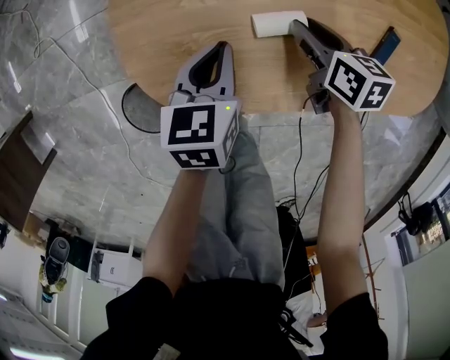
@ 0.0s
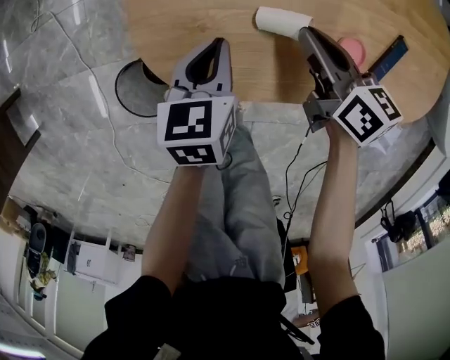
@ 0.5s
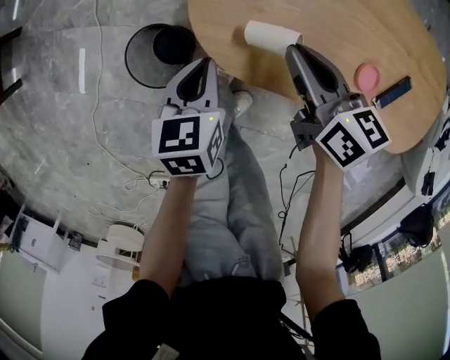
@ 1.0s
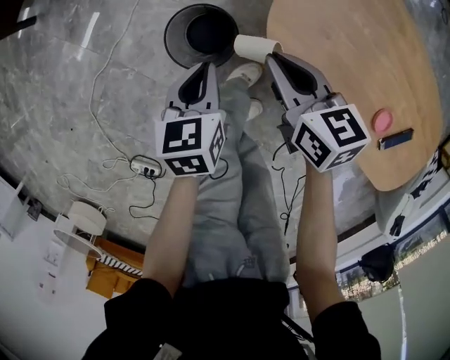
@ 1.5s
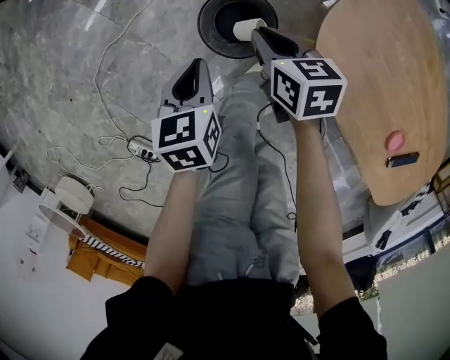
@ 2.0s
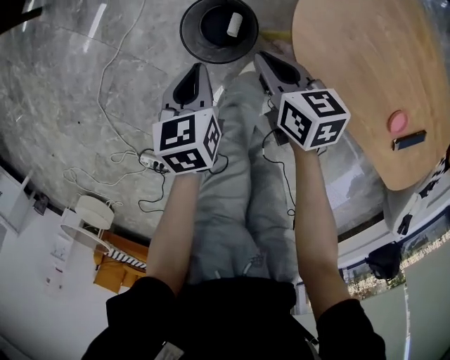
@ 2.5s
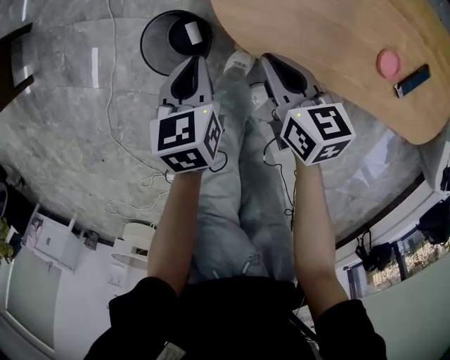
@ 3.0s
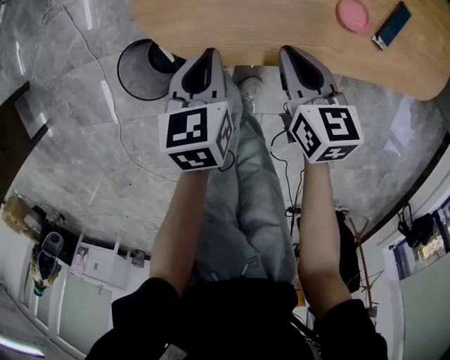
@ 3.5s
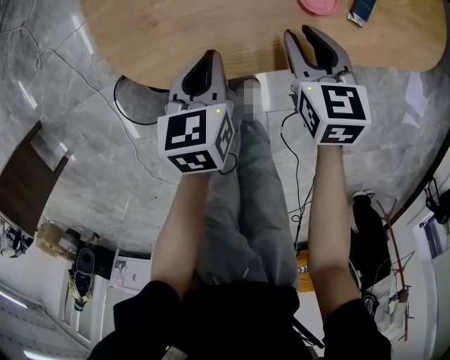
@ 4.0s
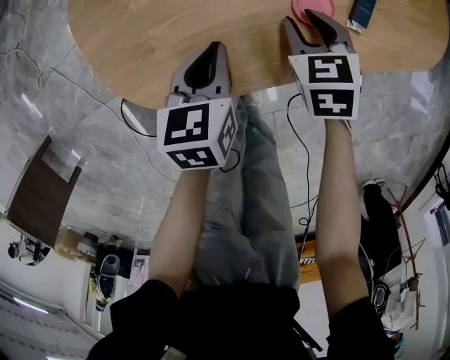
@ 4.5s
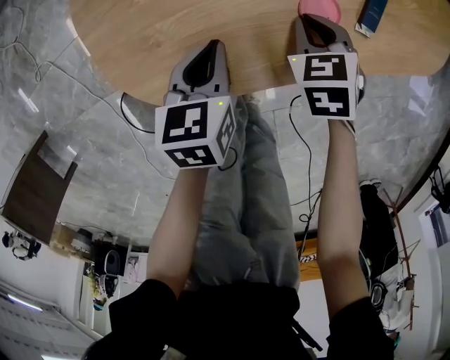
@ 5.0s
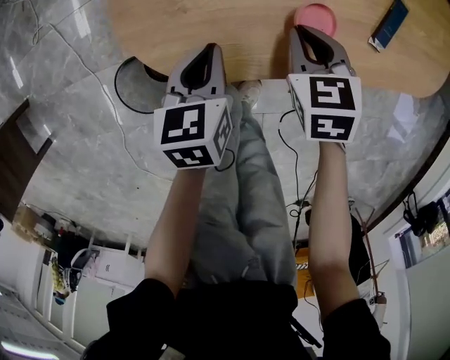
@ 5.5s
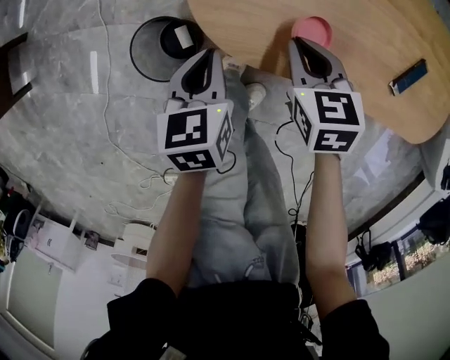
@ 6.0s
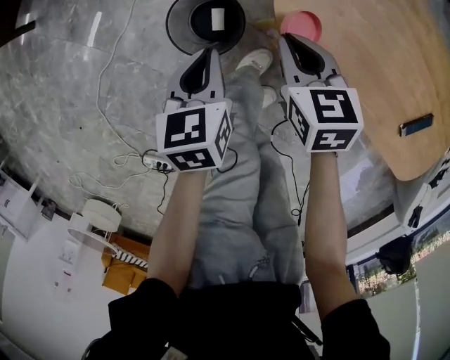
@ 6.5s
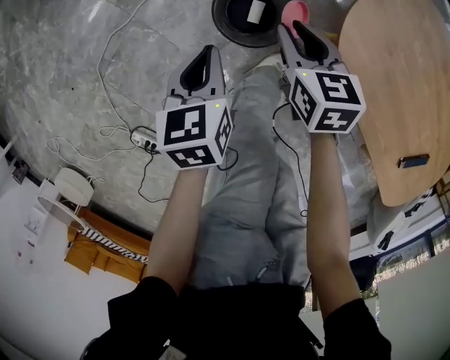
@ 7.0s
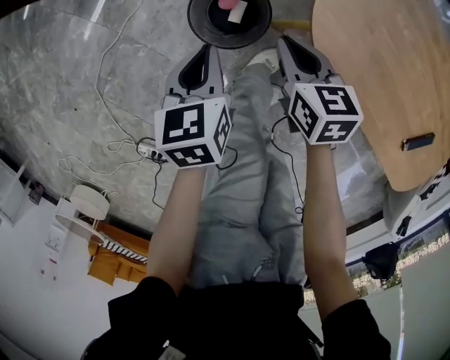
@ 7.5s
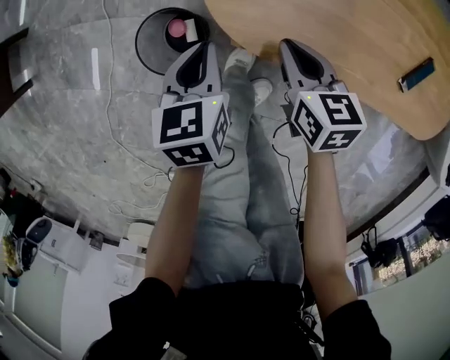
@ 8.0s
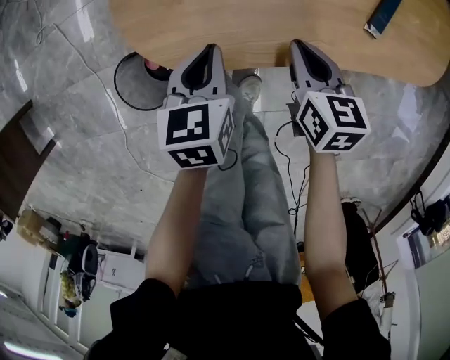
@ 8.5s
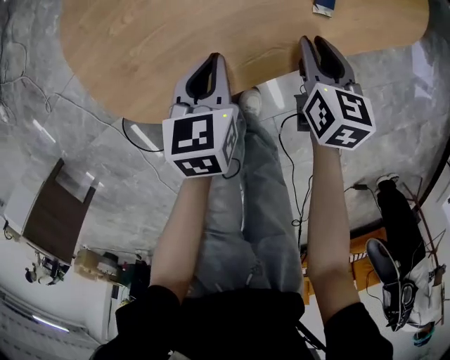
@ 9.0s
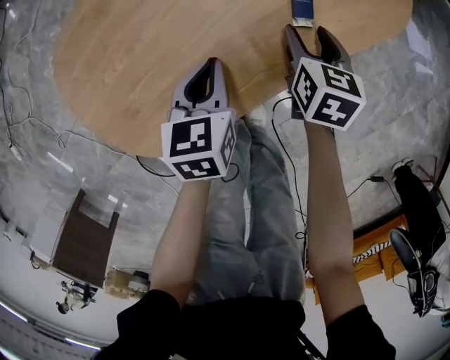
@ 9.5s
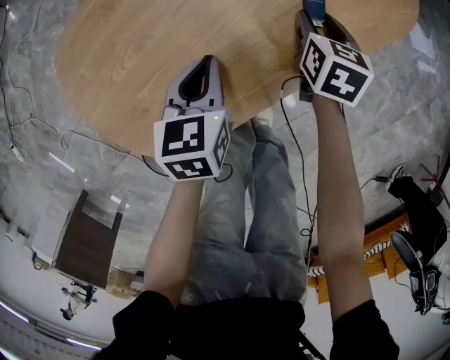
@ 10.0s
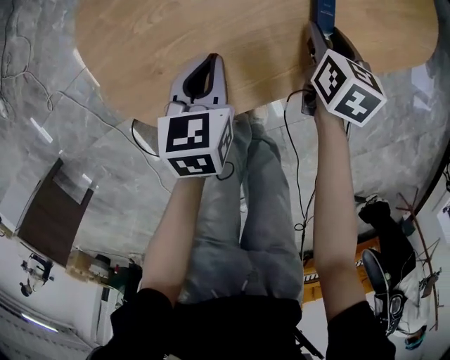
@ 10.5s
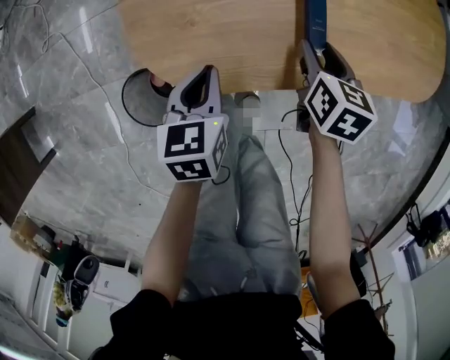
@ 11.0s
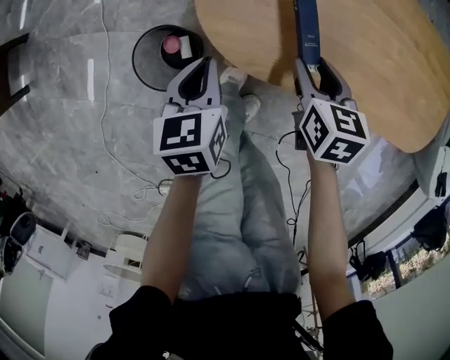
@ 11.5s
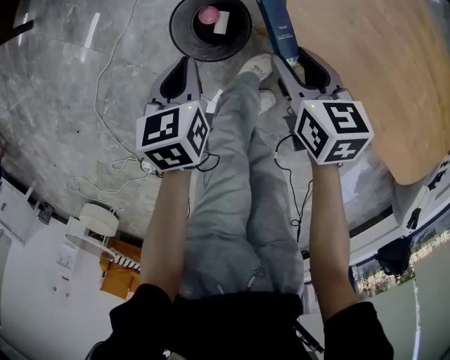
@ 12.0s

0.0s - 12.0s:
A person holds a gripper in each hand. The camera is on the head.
0.0s - 2.0s: The pair of grippers is taken some 50 cm. The right gripper turns by roughly 50 degrees, and closes up; the left gripper turns by approximately 60 degrees.
2.0s - 4.0s: The two grippers travel together, about 40 cm. The right gripper turns by roughly 60 degrees. The left gripper turns by about 60 degrees.
4.0s - 6.0s: The right gripper moves roughly 20 cm, turns by roughly 30 degrees, and closes up, while the left gripper ends up about 15 cm from where it was, and swivels about 30 degrees.
8.0s - 10.0s: The left gripper moves approximately 35 cm, and changes its angle by about 50 degrees. The right gripper changes place by approximately 40 cm, turns by about 60 degrees, and opens up.
10.0s - 12.0s: Both grippers are carried approximately 50 cm. The right gripper rotates some 80 degrees. Meanwhile the left gripper swivels roughly 70 degrees.

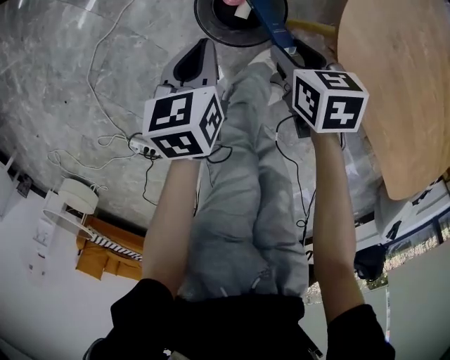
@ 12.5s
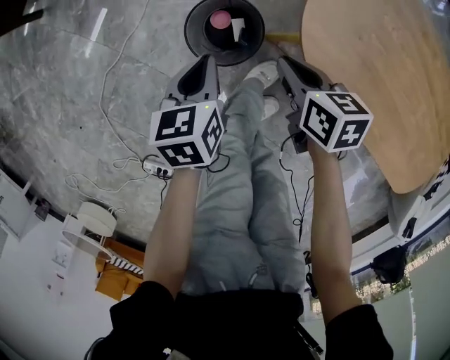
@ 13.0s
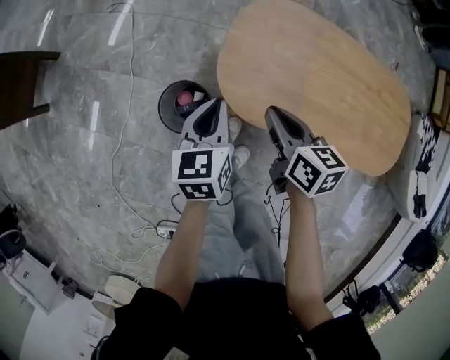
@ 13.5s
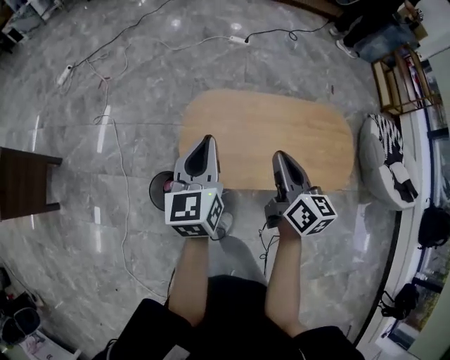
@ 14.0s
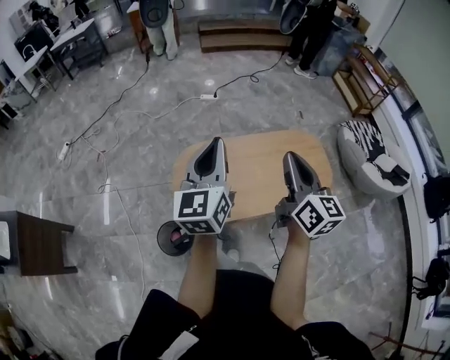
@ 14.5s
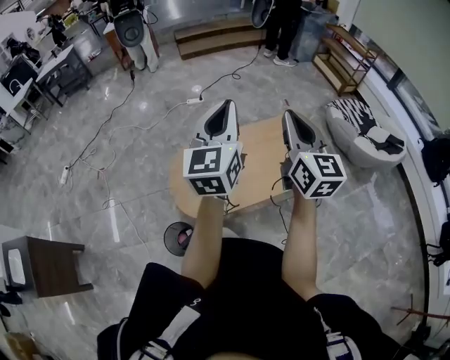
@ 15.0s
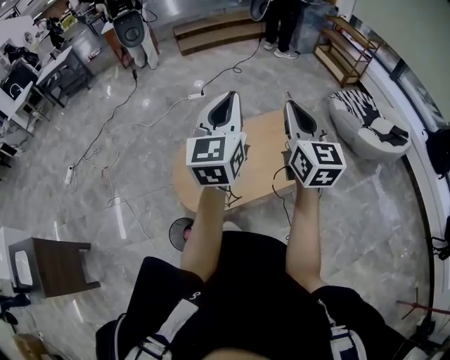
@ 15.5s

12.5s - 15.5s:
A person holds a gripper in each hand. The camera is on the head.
12.5s - 14.0s: Both grippers travel together upward, about 50 cm. The right gripper points its fingers some 40 degrees further upward, and closes up; the left gripper angles its fingers upward, by approximately 40 degrees.
14.0s - 15.5s: Both grippers travel together upward, some 25 cm. The left gripper changes its angle by some 30 degrees; the right gripper rotates roughly 40 degrees.

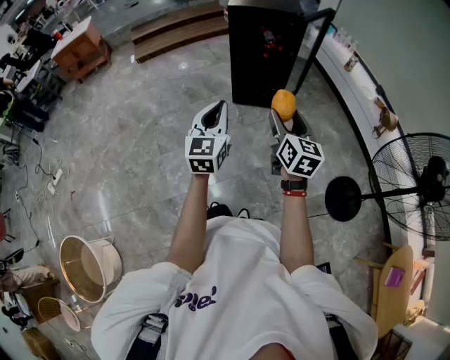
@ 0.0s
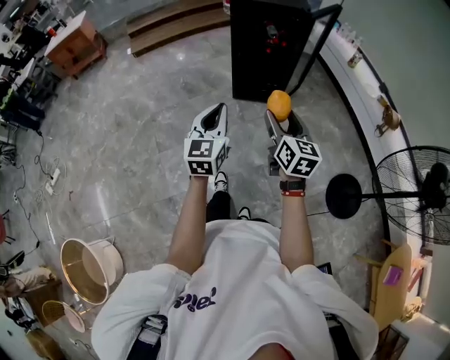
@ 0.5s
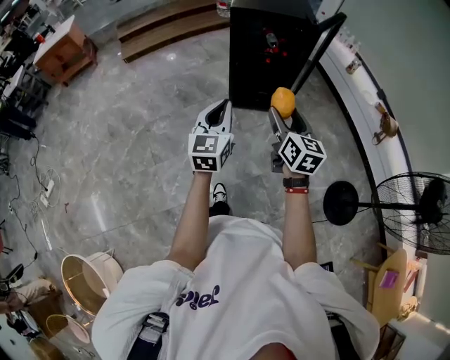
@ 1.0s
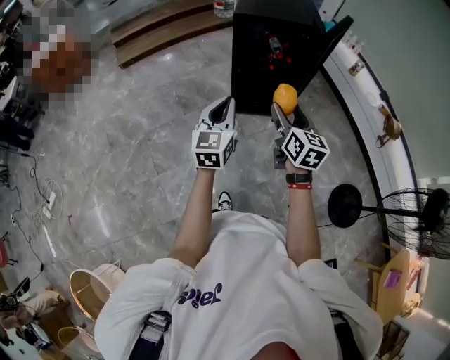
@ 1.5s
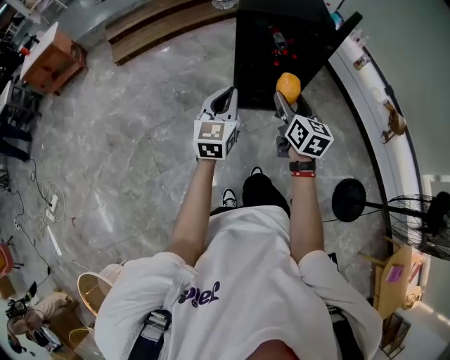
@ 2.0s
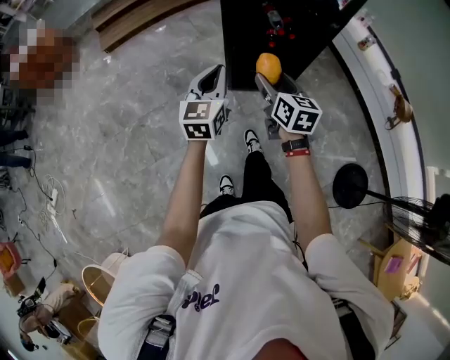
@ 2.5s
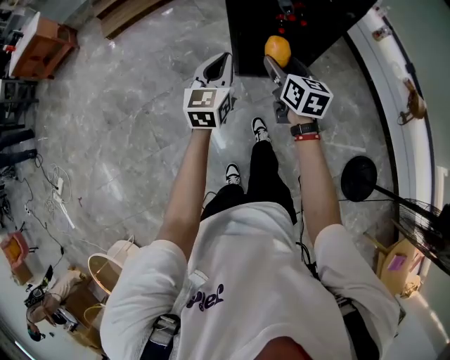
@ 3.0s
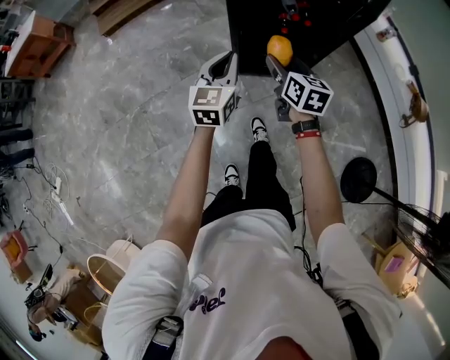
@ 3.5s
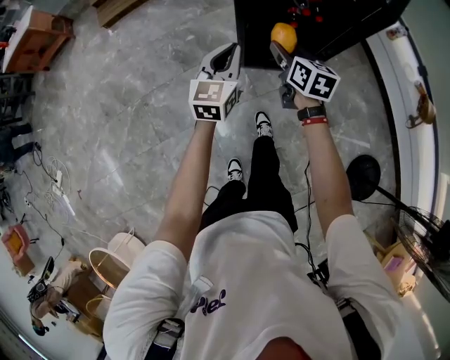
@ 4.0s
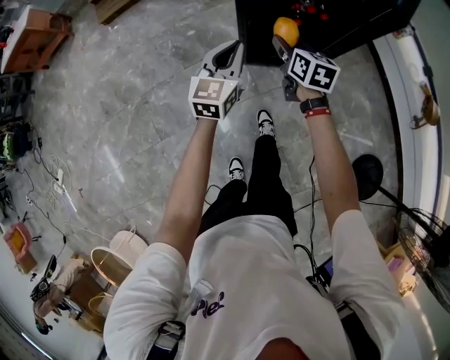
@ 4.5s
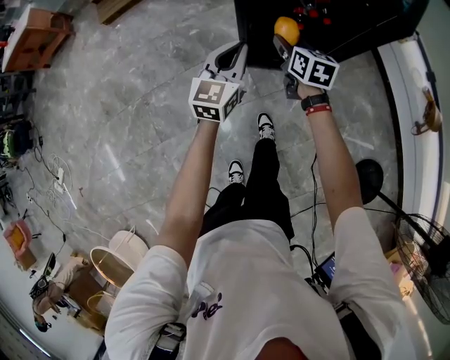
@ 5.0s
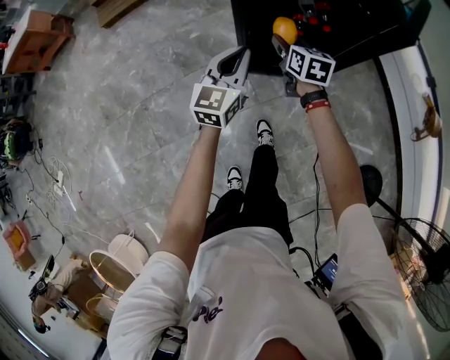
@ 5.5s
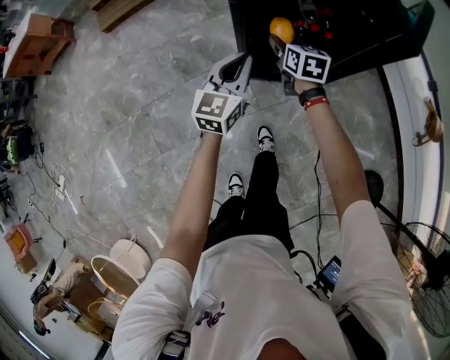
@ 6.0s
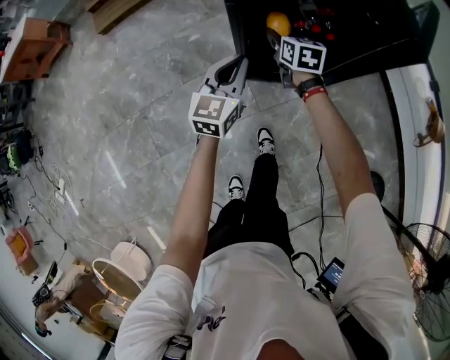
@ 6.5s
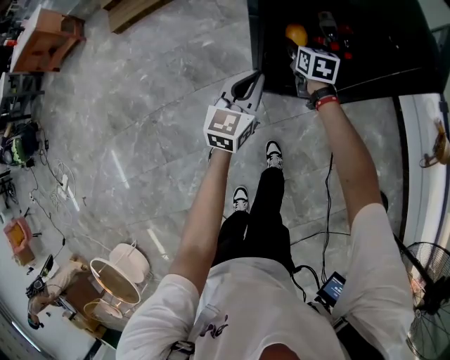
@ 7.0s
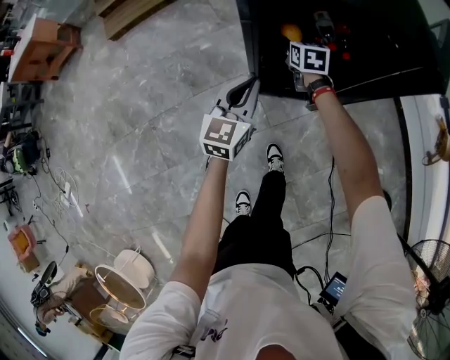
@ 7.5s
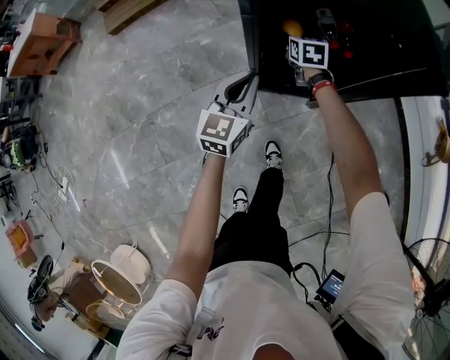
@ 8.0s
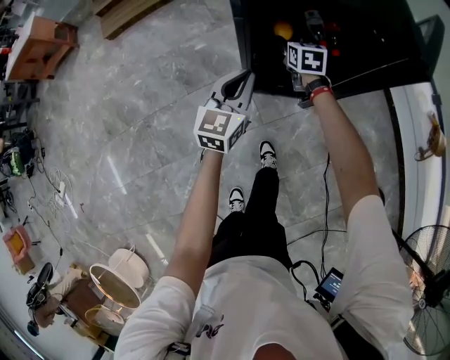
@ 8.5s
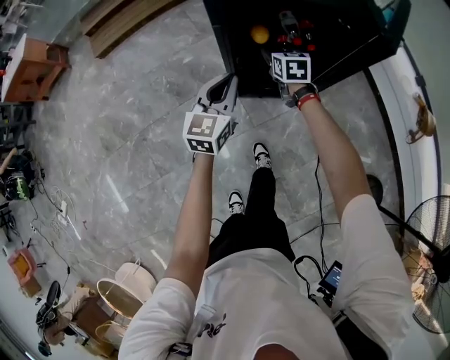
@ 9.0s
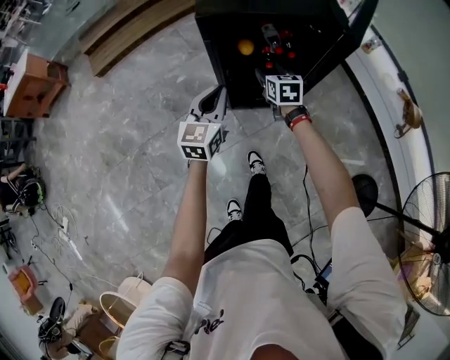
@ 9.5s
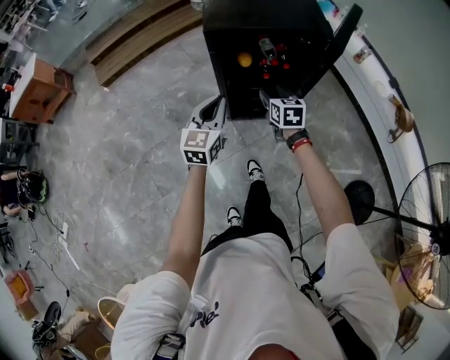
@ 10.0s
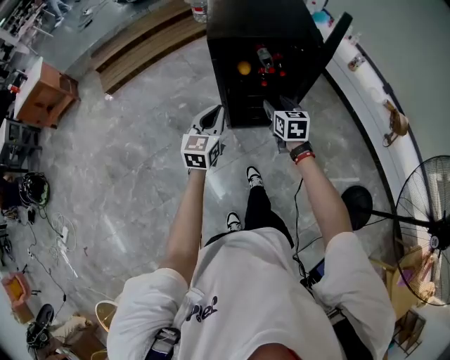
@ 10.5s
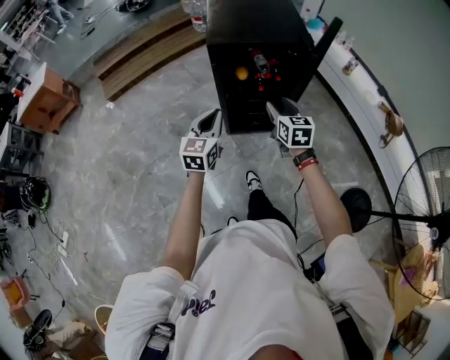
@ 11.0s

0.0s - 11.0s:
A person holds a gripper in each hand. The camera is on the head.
0.0s - 2.0s: The pair of grippers is taken forward, roughly 40 cm.
2.0s - 3.5s: The grippers both shift forward and downward by approximately 25 cm.
3.5s - 5.5s: The right gripper is displaced forward and downward by some 20 cm. The left gripper is displaced forward and downward by roughly 10 cm.
5.5s - 7.5s: The right gripper travels forward and downward by approximately 20 cm. Meanwhile the left gripper travels downward and forward by about 10 cm.
7.5s - 9.0s: The right gripper is displaced backward and upward by approximately 10 cm. Meanwhile the left gripper moves upward, roughly 5 cm.
9.0s - 11.0s: The left gripper shifts some 25 cm backward and upward. Meanwhile the right gripper shifts roughly 35 cm backward and upward.
